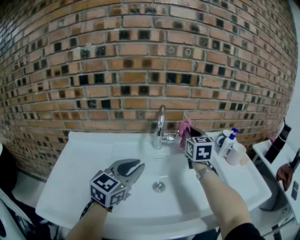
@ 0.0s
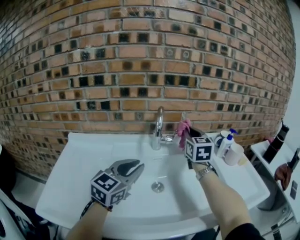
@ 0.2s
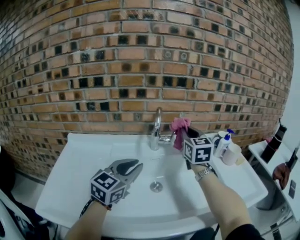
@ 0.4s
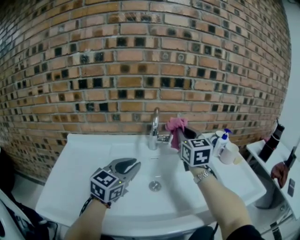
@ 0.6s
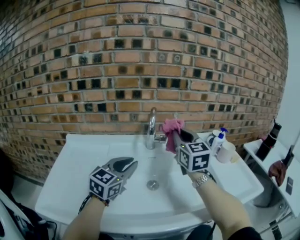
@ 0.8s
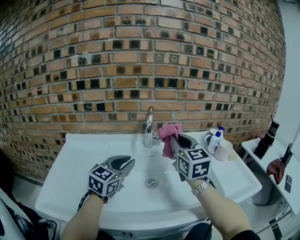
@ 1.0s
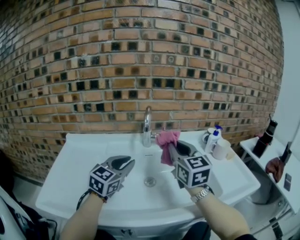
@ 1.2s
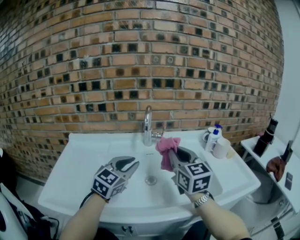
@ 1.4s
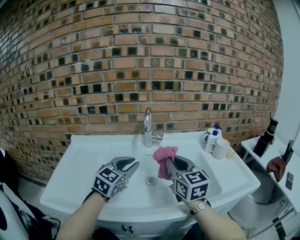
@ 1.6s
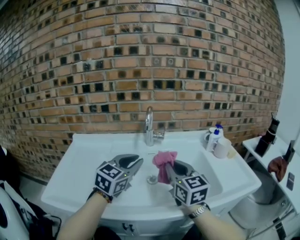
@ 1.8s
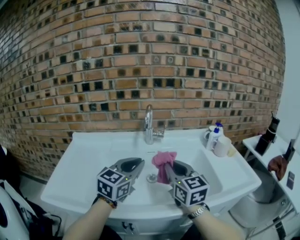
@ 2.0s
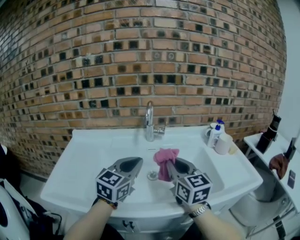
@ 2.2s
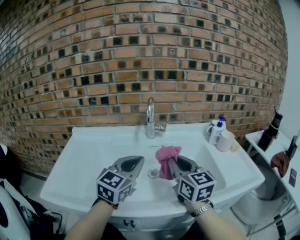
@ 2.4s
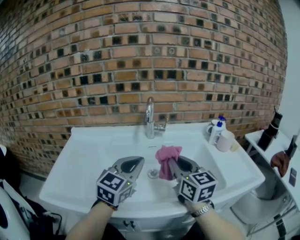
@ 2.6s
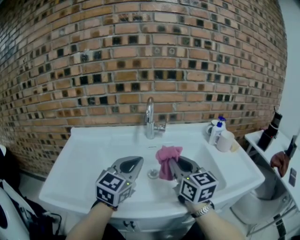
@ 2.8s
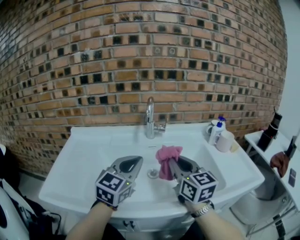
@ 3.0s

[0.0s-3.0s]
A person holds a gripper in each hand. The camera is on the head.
0.0s to 1.6s: The right gripper heads backward, covering roughly 20 cm.
1.6s to 3.0s: The left gripper ends up some 5 cm from where it was.

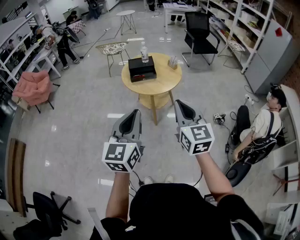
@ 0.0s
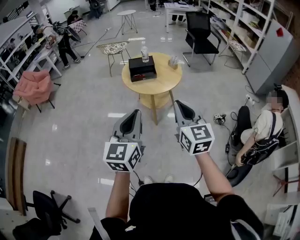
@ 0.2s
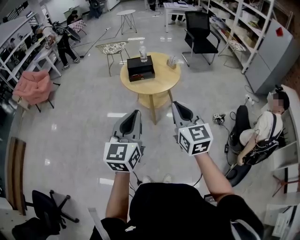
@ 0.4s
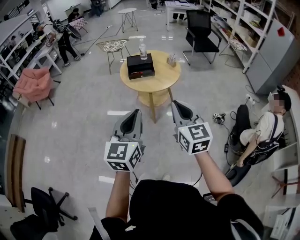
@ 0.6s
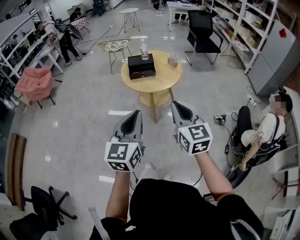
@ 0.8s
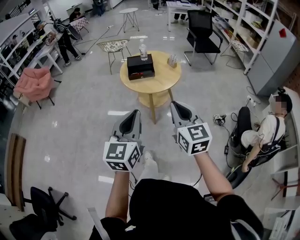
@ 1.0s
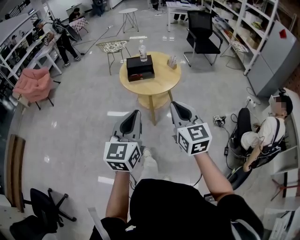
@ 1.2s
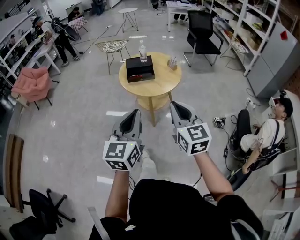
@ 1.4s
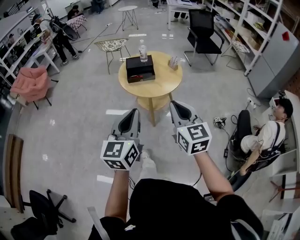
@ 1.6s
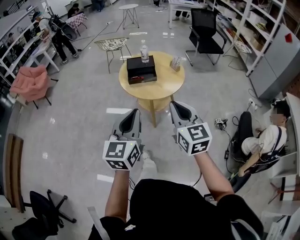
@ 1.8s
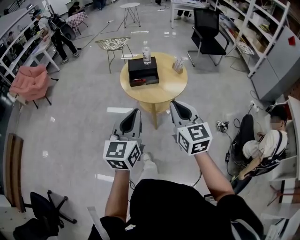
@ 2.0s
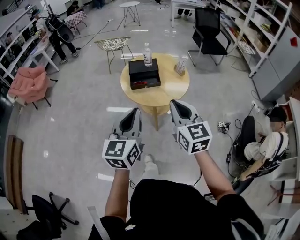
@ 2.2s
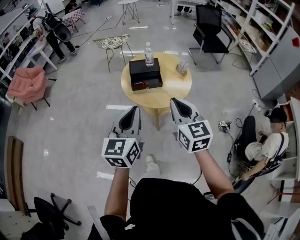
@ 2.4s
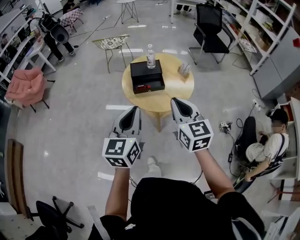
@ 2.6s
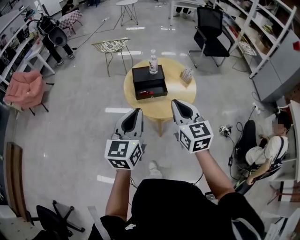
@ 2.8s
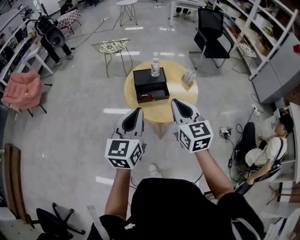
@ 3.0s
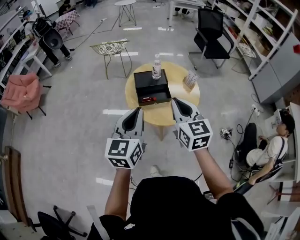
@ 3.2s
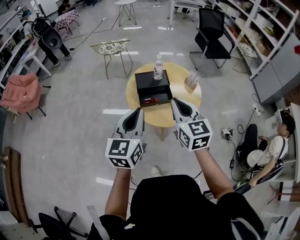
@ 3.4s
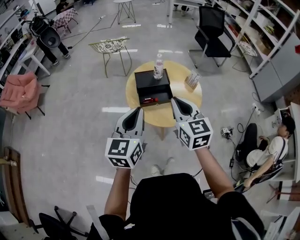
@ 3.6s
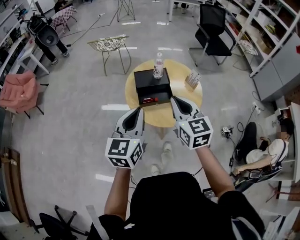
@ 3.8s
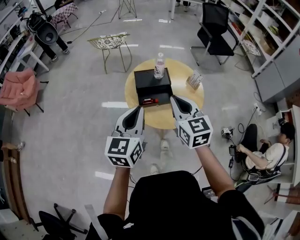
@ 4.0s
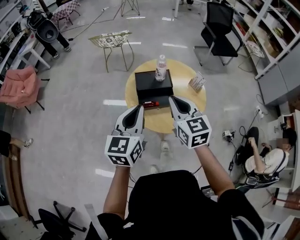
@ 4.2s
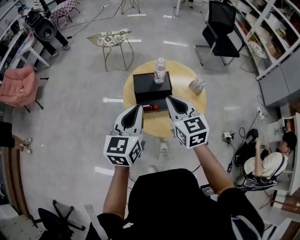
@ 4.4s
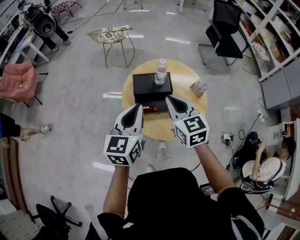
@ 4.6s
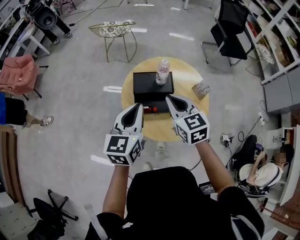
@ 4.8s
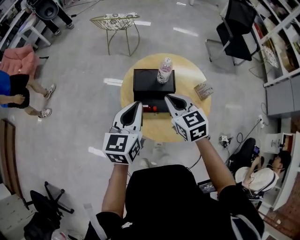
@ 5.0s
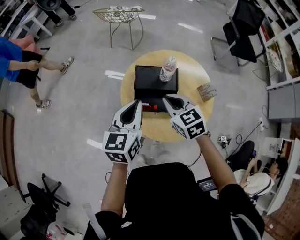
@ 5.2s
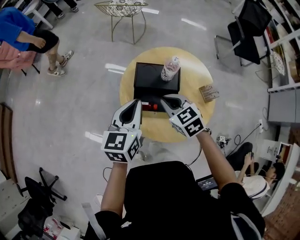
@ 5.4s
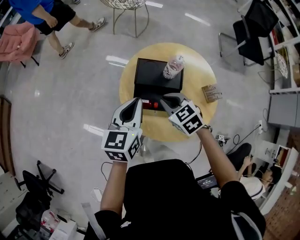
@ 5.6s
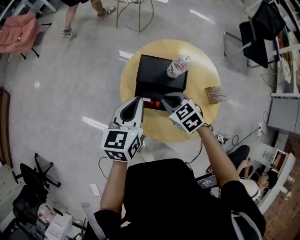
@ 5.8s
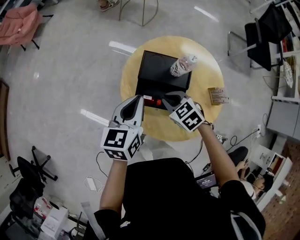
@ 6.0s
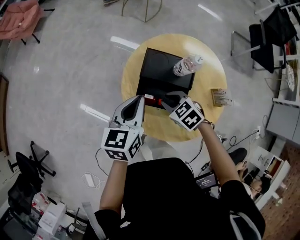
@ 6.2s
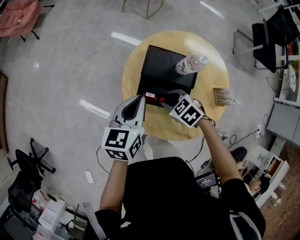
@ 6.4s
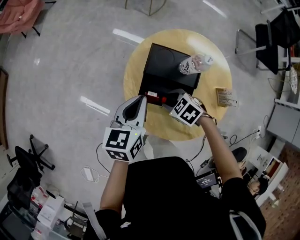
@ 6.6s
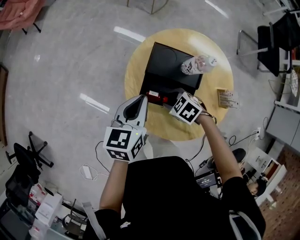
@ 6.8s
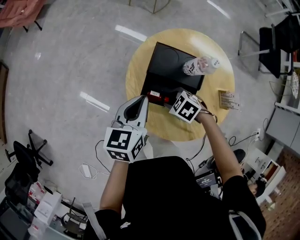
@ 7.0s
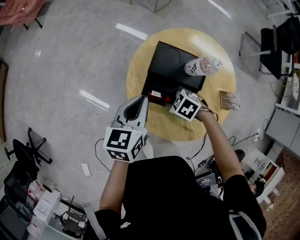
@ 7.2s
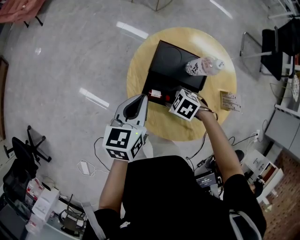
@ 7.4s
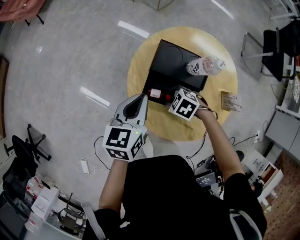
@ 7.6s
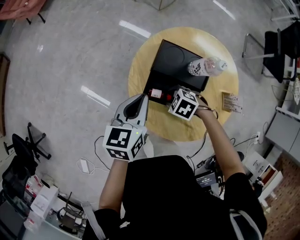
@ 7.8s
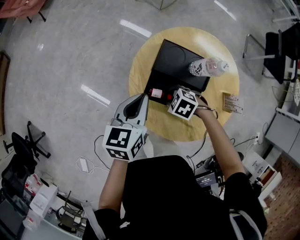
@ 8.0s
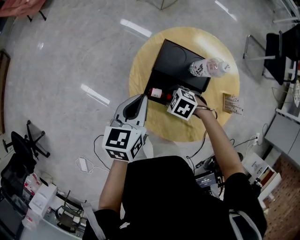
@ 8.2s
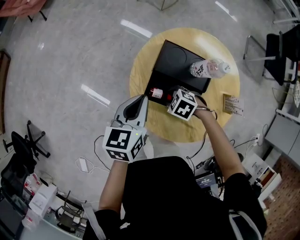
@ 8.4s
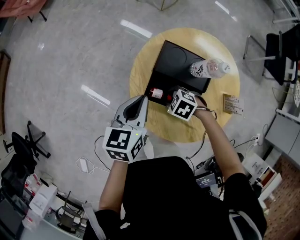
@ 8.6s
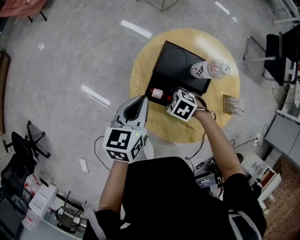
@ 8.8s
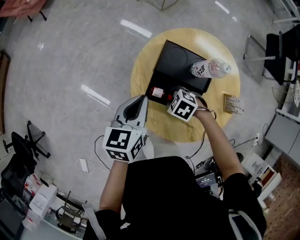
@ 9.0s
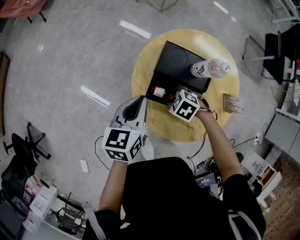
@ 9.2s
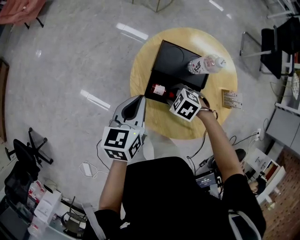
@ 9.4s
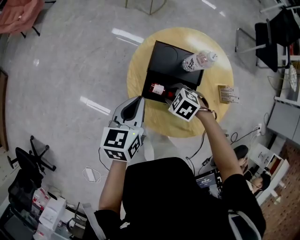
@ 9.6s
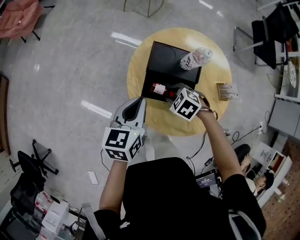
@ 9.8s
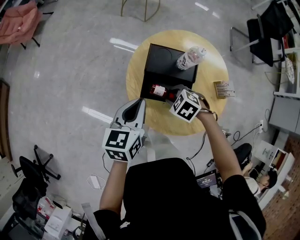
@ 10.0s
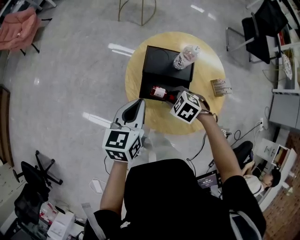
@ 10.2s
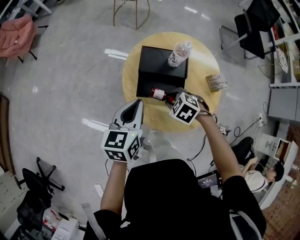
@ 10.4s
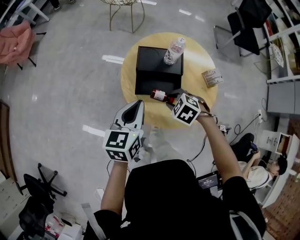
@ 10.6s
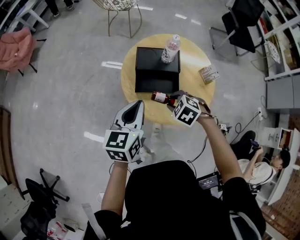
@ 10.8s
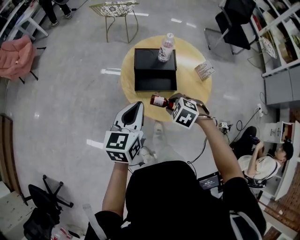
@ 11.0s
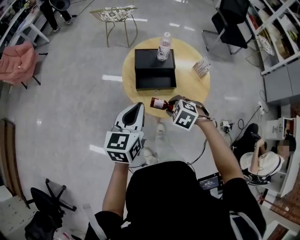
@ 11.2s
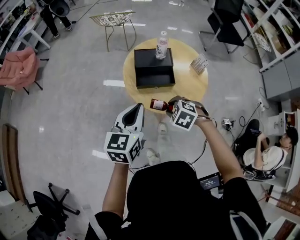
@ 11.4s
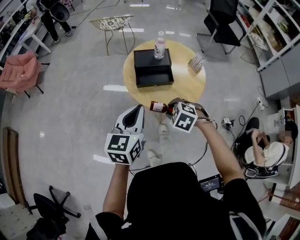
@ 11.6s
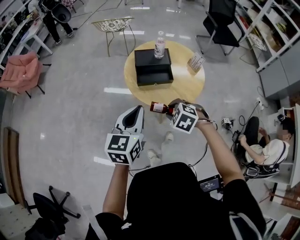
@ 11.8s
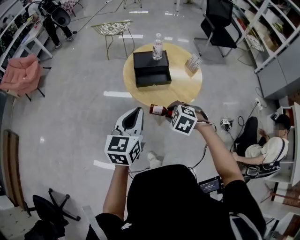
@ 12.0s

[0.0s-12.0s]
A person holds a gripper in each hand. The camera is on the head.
0.0s to 1.6s: Both grippers move forward, roughly 10 cm.
1.6s to 3.0s: Both grippers move forward, roughly 25 cm.
3.0s to 4.4s: The two grippers go about 15 cm forward.
4.4s to 6.0s: The left gripper moves downward, about 15 cm, and swivels about 30 degrees, while the right gripper is displaced downward by some 25 cm, and tilts its fingers roughly 40 degrees downward.
6.0s to 7.6s: The left gripper shifts roughly 5 cm downward. Meanwhile the right gripper heads downward, covering some 10 cm, rotates roughly 30 degrees, and opens up.
7.6s to 9.0s: The grippers move only a little.
9.0s to 10.4s: The two grippers go some 10 cm upward.
10.4s to 12.0s: The two grippers go some 25 cm backward and upward.

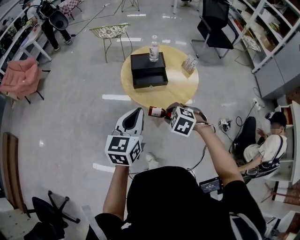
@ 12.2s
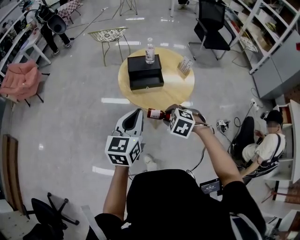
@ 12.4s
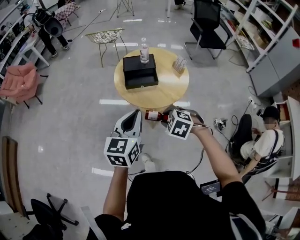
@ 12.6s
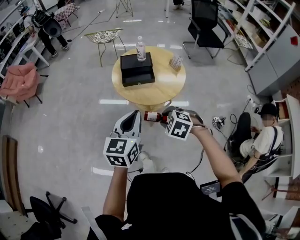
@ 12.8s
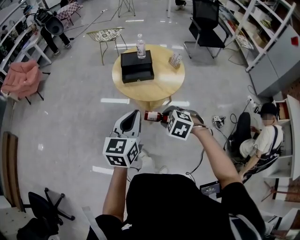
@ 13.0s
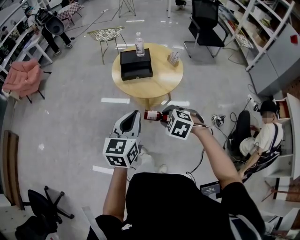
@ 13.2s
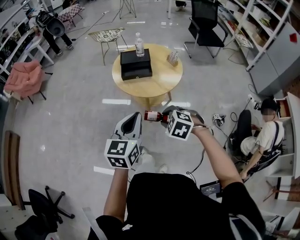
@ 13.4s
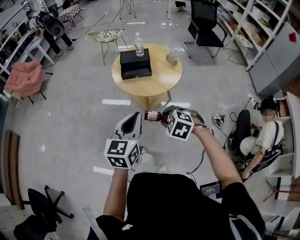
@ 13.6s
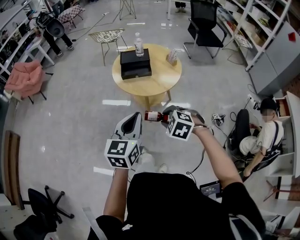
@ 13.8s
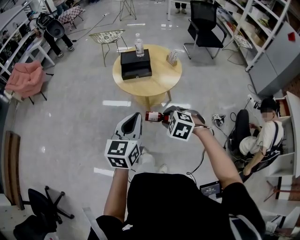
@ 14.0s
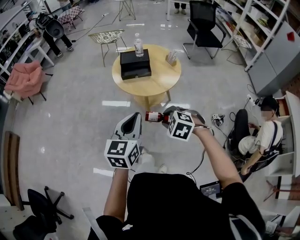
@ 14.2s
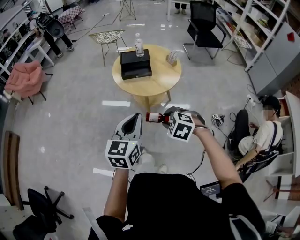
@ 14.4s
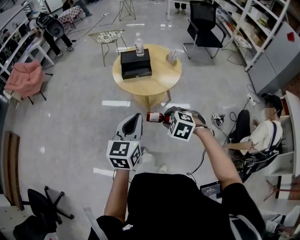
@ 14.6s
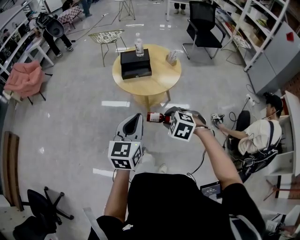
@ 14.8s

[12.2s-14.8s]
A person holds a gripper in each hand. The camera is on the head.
12.2s to 13.4s: The left gripper heads backward and to the right, covering approximately 20 cm. Meanwhile the right gripper goes roughly 15 cm backward.
13.4s to 14.8s: The grippers stay close to where they were, moving slightly.

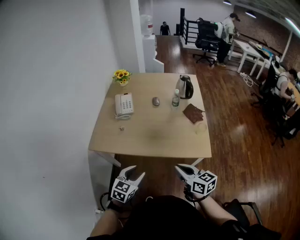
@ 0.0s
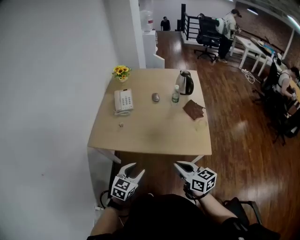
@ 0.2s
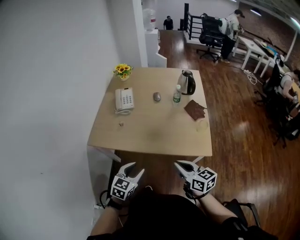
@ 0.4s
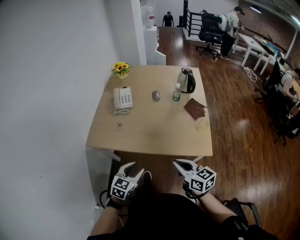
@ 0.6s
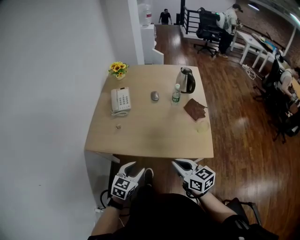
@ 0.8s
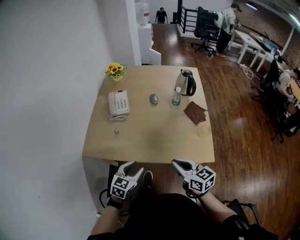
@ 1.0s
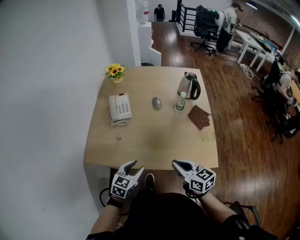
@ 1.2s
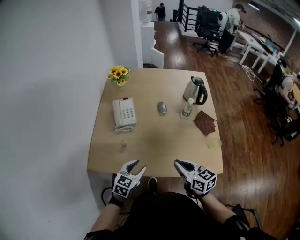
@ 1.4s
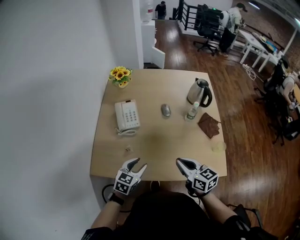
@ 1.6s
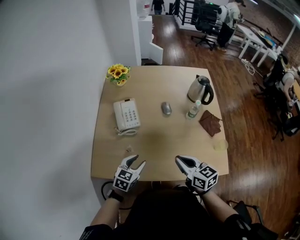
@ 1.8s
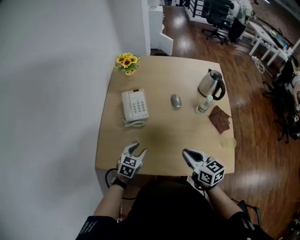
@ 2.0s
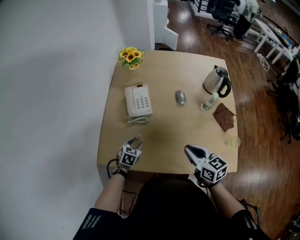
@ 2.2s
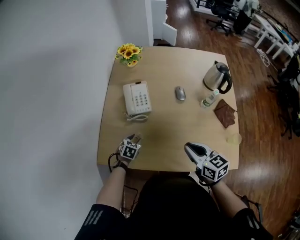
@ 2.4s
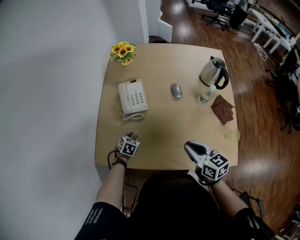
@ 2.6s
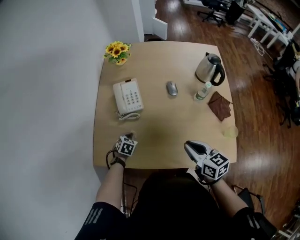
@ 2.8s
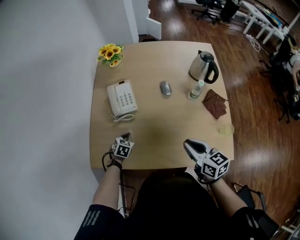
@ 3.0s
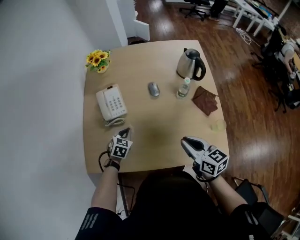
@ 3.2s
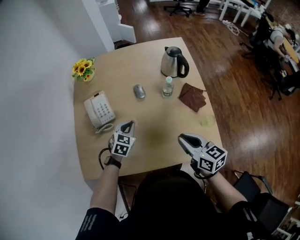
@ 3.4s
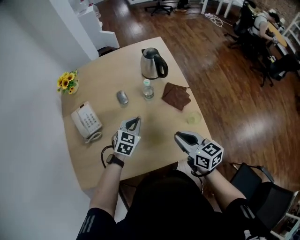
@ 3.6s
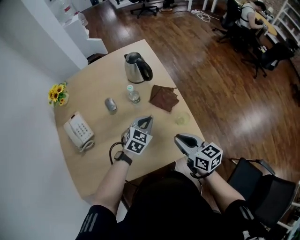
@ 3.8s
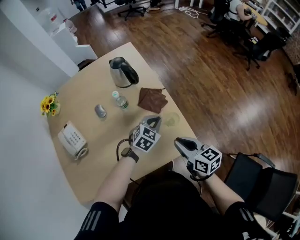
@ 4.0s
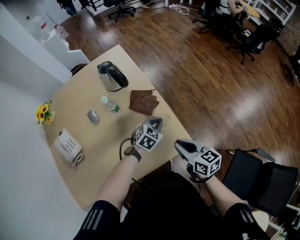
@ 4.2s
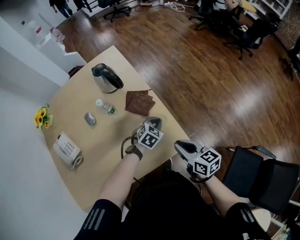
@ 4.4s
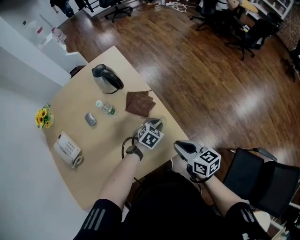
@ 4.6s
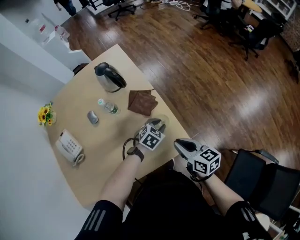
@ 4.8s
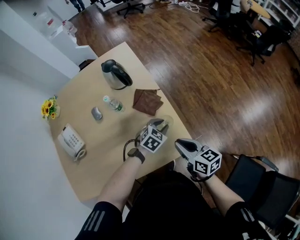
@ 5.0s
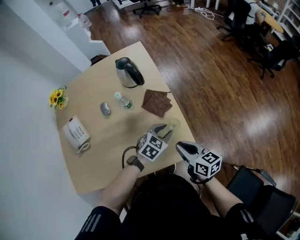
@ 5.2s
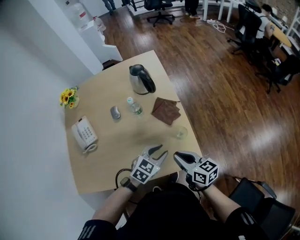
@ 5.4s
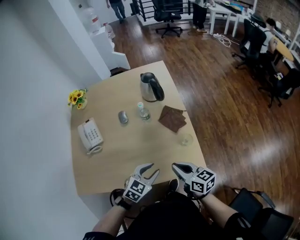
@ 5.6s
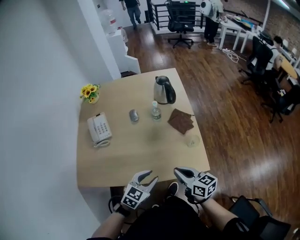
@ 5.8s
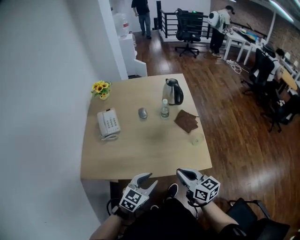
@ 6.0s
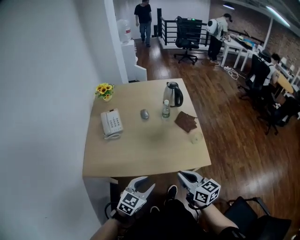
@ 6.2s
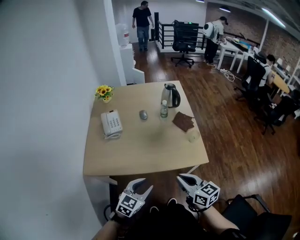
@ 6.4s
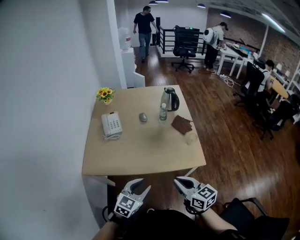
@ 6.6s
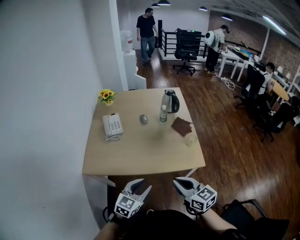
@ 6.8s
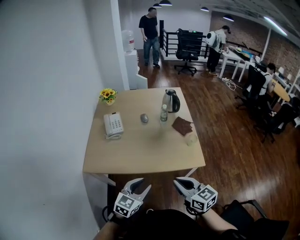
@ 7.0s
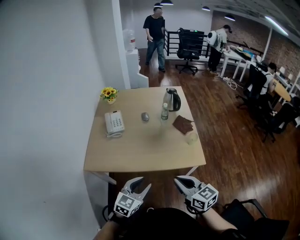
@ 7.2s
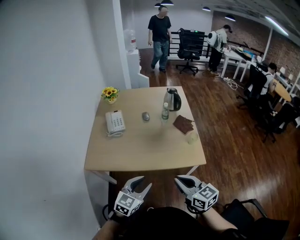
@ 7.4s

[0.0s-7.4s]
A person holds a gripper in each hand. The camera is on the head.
0.0s to 1.4s: Both grippers travel together forward, some 25 cm.
1.4s to 3.0s: The left gripper is displaced forward, downward and to the left by about 25 cm, rotates some 30 degrees, and closes, while the right gripper is displaced forward by about 10 cm.
3.0s to 4.4s: The left gripper ends up approximately 60 cm from where it was, and rotates about 50 degrees. Meanwhile the right gripper changes place by roughly 35 cm, and changes its angle by approximately 30 degrees.
4.4s to 6.0s: The left gripper heads backward, to the left and upward, covering some 40 cm, swivels approximately 30 degrees, and opens. Meanwhile the right gripper shifts roughly 25 cm to the left, backward and upward, and rotates about 30 degrees.
6.0s to 7.4s: Both grippers move backward and upward, roughly 15 cm.
